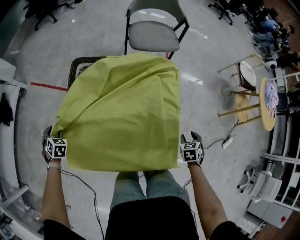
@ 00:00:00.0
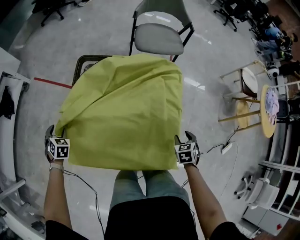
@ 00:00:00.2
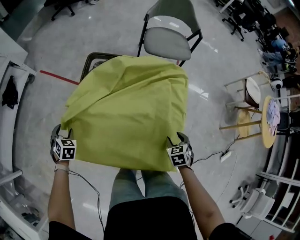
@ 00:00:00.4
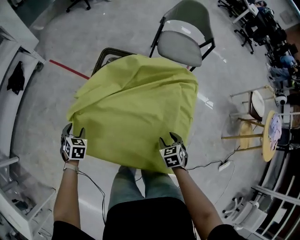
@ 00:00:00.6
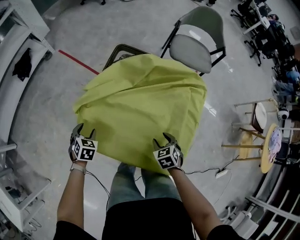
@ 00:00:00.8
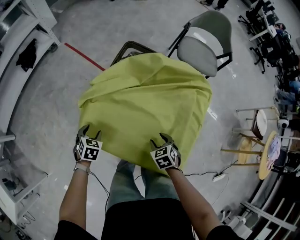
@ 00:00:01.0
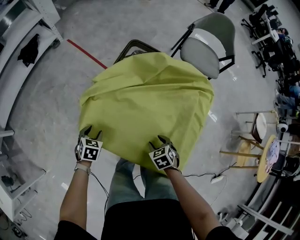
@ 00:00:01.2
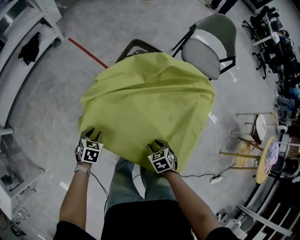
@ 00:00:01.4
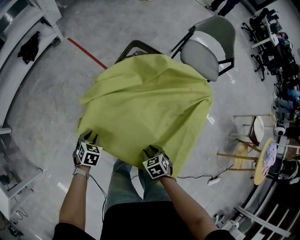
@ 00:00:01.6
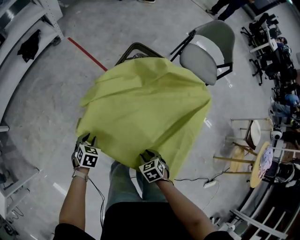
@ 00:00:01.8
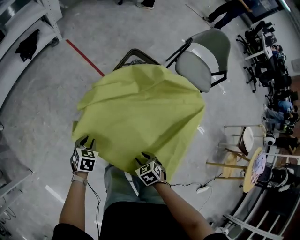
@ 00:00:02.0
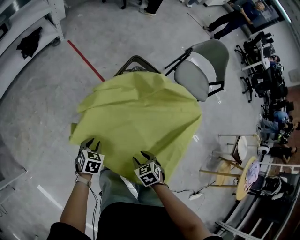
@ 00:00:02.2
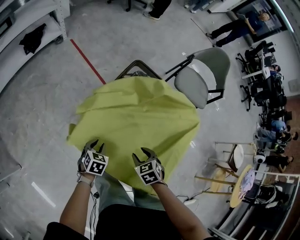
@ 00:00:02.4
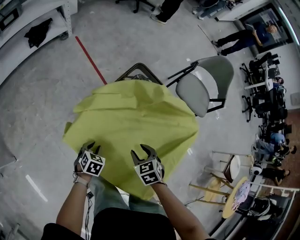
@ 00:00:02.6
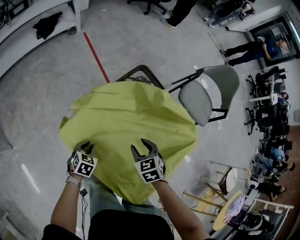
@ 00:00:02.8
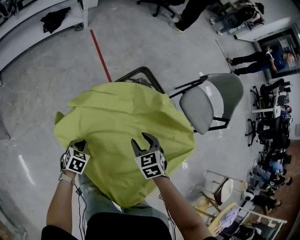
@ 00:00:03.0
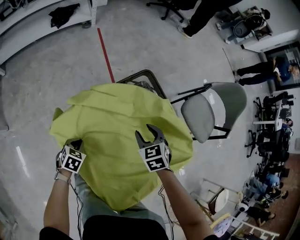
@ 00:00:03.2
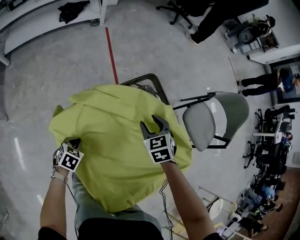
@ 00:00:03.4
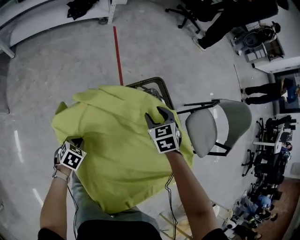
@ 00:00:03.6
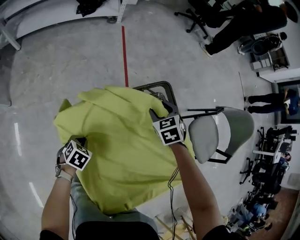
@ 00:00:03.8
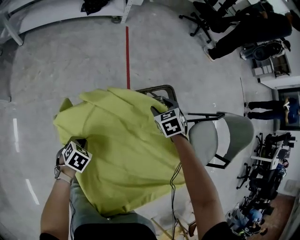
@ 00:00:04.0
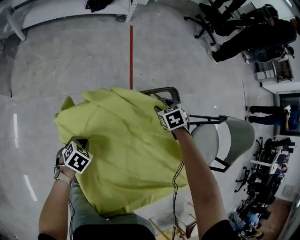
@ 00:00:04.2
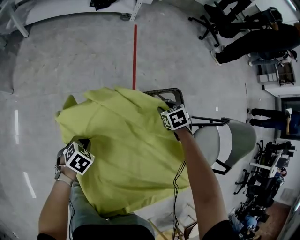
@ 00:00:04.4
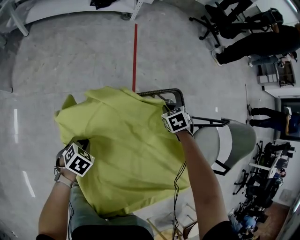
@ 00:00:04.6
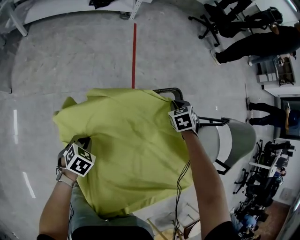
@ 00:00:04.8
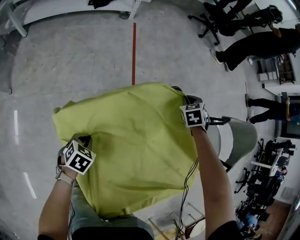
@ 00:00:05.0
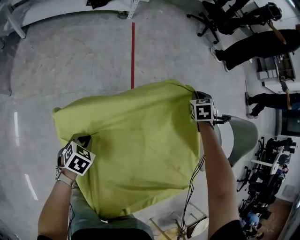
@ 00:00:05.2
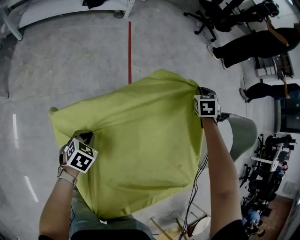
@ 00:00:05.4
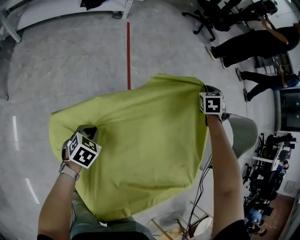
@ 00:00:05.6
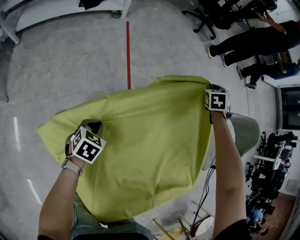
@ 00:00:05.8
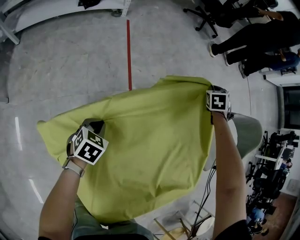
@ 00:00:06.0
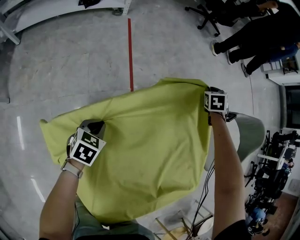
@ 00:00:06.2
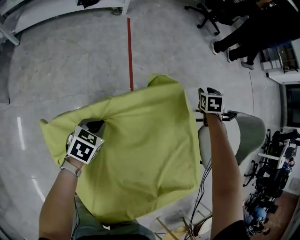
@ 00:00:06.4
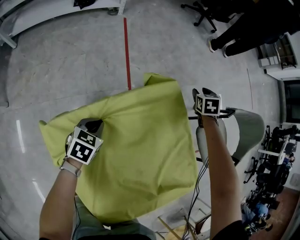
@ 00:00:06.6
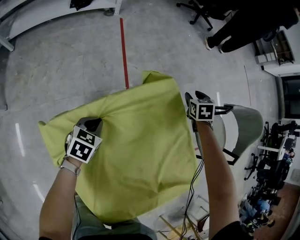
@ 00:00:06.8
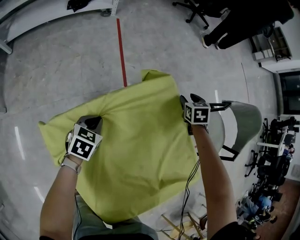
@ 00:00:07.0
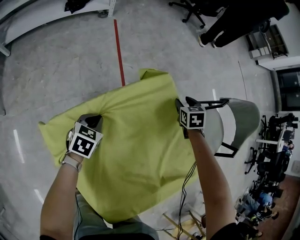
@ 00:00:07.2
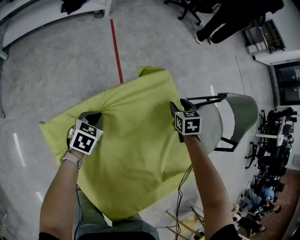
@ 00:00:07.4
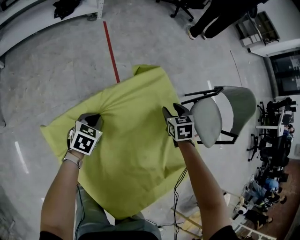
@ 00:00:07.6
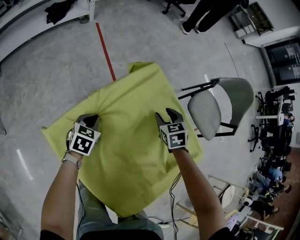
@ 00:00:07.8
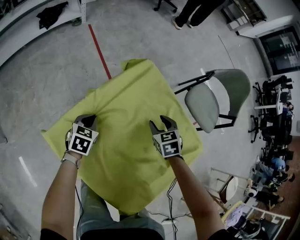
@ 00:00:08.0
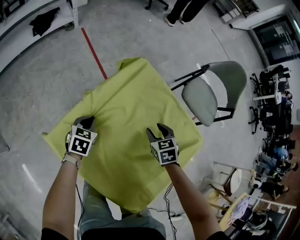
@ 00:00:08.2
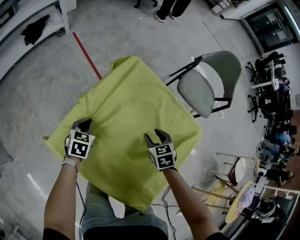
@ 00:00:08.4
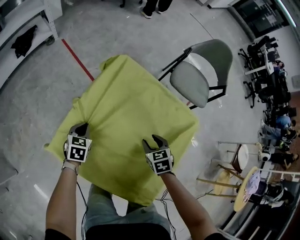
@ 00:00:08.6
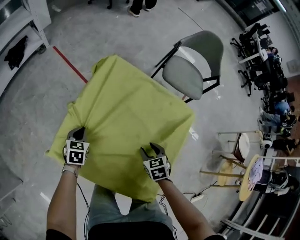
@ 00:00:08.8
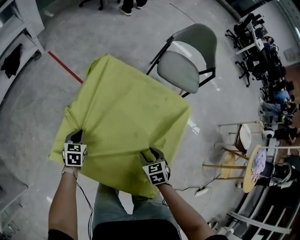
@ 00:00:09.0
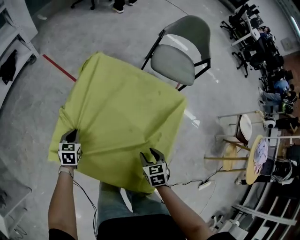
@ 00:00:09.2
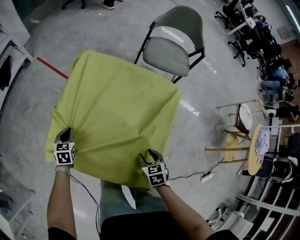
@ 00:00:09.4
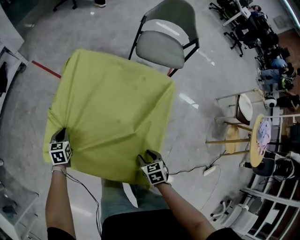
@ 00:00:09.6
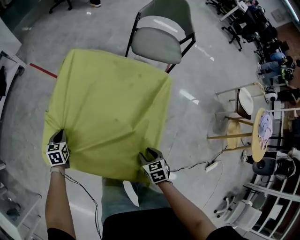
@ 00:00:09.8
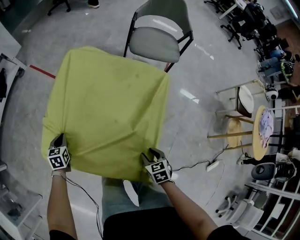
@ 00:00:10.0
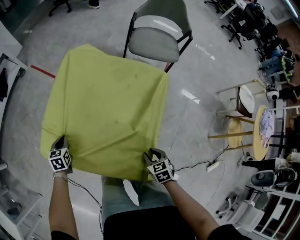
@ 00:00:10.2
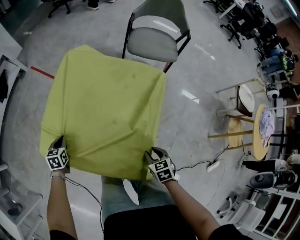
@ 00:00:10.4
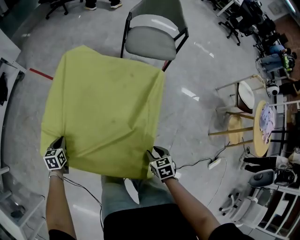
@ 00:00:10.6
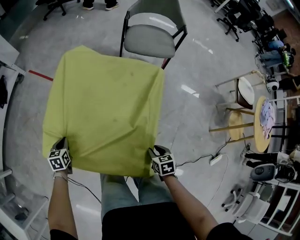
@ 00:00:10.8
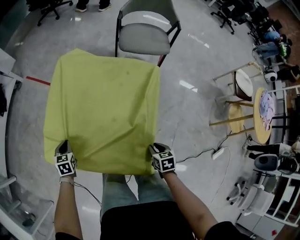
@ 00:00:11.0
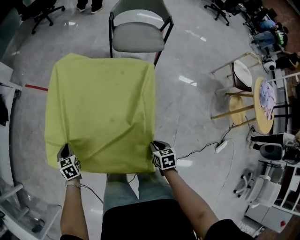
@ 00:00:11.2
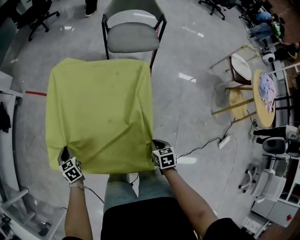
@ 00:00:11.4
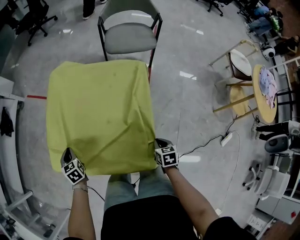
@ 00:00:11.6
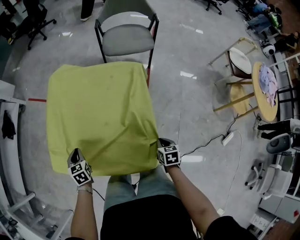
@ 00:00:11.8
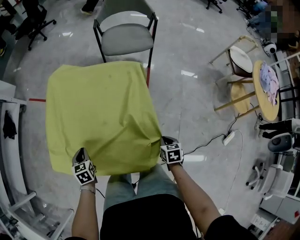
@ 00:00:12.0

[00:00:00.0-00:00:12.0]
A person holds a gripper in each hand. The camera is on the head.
00:00:00.0 to 00:00:01.6: The right gripper ends up about 30 cm from where it was, and turns by approximately 50 degrees; the left gripper ends up approximately 20 cm from where it was, and turns by some 30 degrees.
00:00:01.6 to 00:00:03.0: The left gripper moves to the right, approximately 10 cm, and rotates about 20 degrees, while the right gripper moves forward and upward, approximately 25 cm, and turns by some 30 degrees.
00:00:03.0 to 00:00:04.4: The right gripper travels forward by roughly 25 cm, and changes its angle by some 30 degrees.
00:00:04.4 to 00:00:06.0: The right gripper heads forward, to the right and upward, covering roughly 30 cm, swivels roughly 40 degrees, and closes. The left gripper shifts approximately 15 cm forward.
00:00:06.0 to 00:00:07.6: The right gripper heads backward, covering roughly 25 cm, changes its angle by roughly 20 degrees, and opens its fingers.
00:00:07.6 to 00:00:09.0: The left gripper travels backward by about 5 cm. The right gripper travels backward by about 35 cm, and rotates roughly 30 degrees.
00:00:09.0 to 00:00:10.4: The left gripper goes some 5 cm backward, while the right gripper goes some 20 cm backward and to the right.
00:00:10.4 to 00:00:12.0: The left gripper goes some 15 cm to the right and upward; the right gripper goes roughly 10 cm to the right, and changes its angle by about 30 degrees.

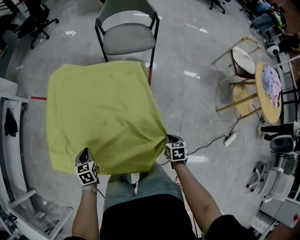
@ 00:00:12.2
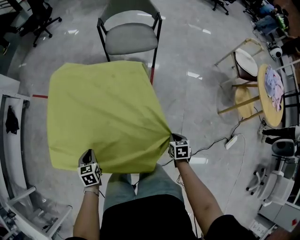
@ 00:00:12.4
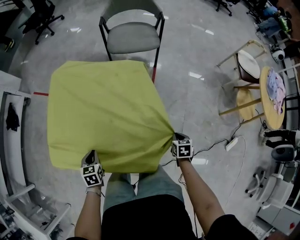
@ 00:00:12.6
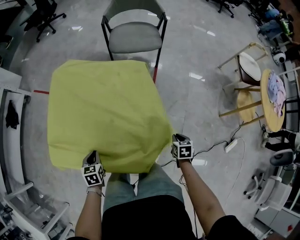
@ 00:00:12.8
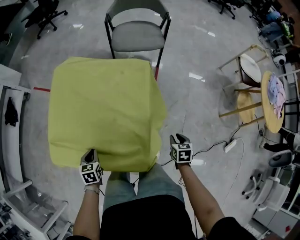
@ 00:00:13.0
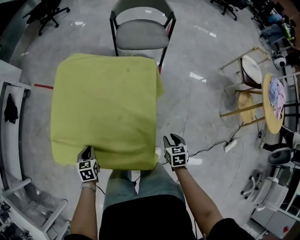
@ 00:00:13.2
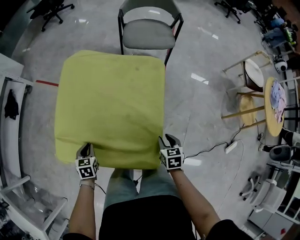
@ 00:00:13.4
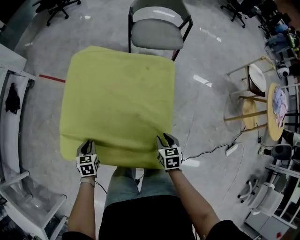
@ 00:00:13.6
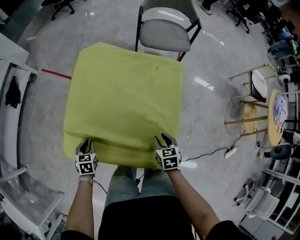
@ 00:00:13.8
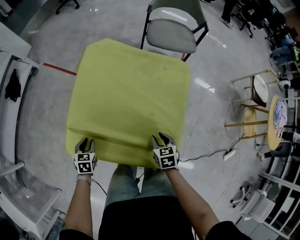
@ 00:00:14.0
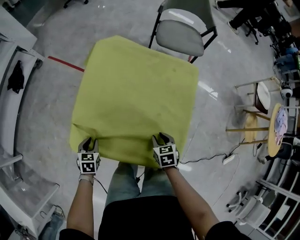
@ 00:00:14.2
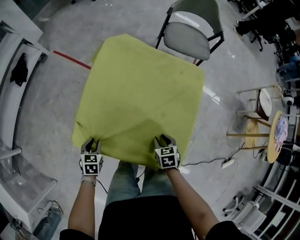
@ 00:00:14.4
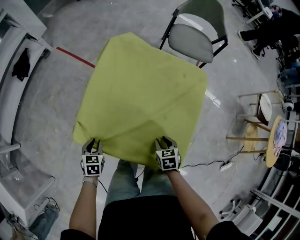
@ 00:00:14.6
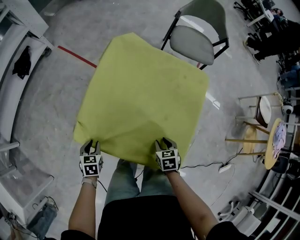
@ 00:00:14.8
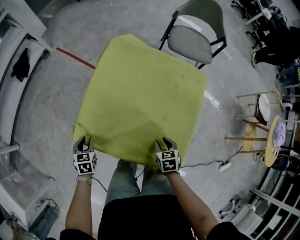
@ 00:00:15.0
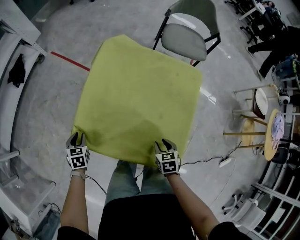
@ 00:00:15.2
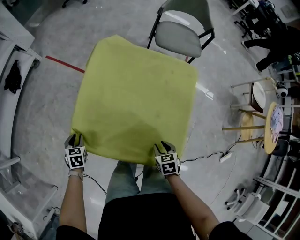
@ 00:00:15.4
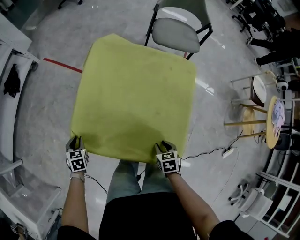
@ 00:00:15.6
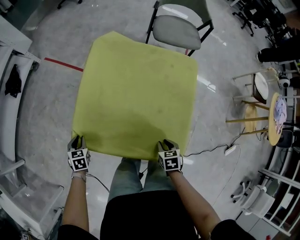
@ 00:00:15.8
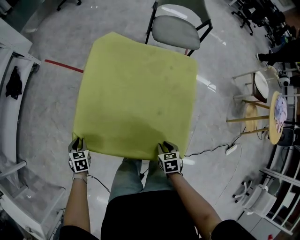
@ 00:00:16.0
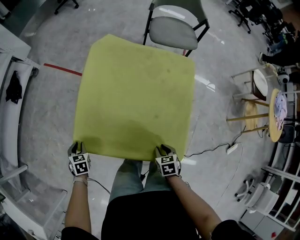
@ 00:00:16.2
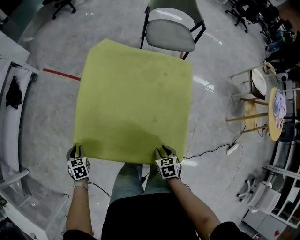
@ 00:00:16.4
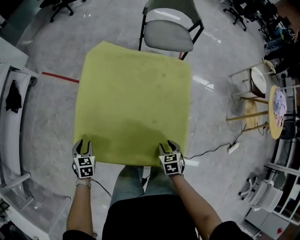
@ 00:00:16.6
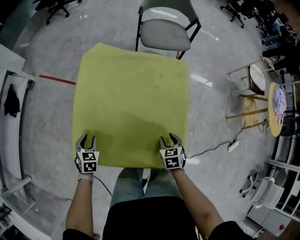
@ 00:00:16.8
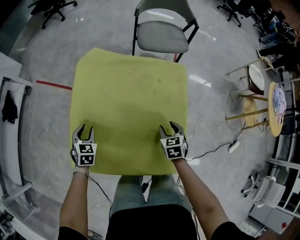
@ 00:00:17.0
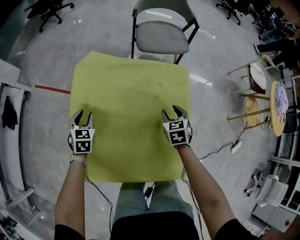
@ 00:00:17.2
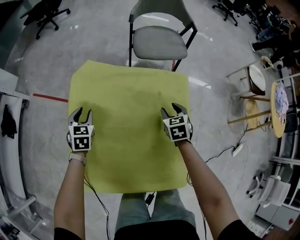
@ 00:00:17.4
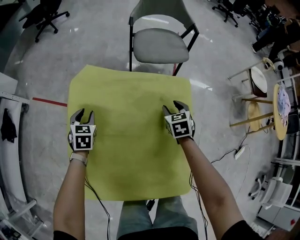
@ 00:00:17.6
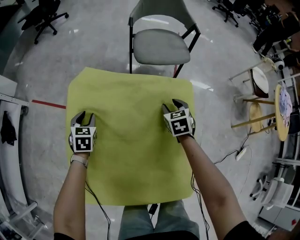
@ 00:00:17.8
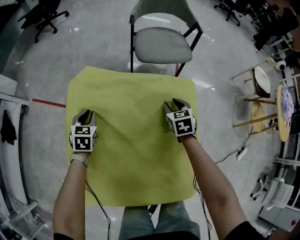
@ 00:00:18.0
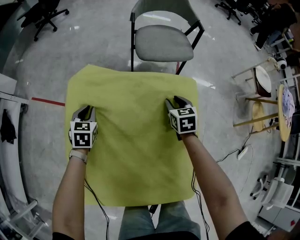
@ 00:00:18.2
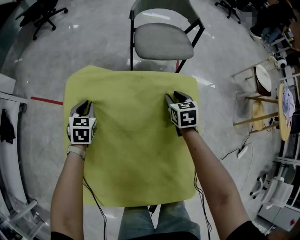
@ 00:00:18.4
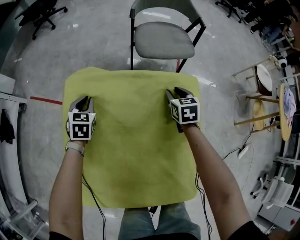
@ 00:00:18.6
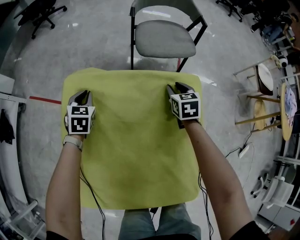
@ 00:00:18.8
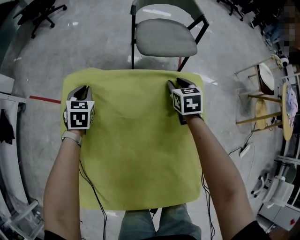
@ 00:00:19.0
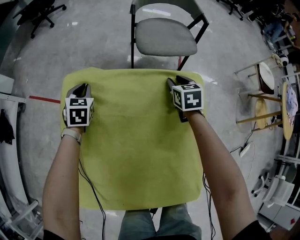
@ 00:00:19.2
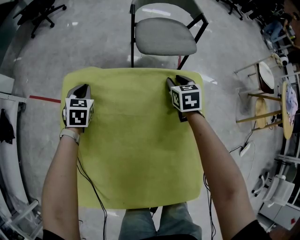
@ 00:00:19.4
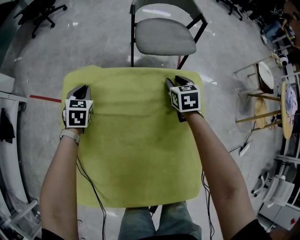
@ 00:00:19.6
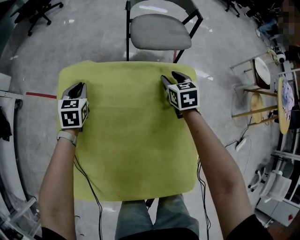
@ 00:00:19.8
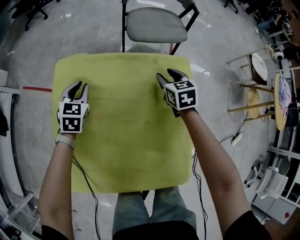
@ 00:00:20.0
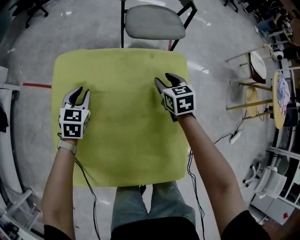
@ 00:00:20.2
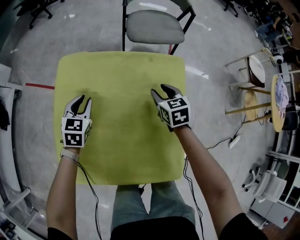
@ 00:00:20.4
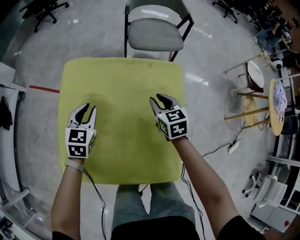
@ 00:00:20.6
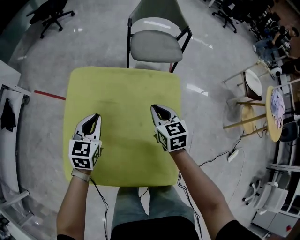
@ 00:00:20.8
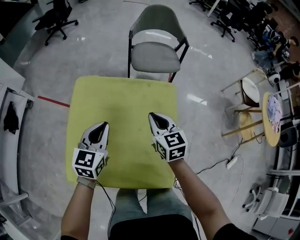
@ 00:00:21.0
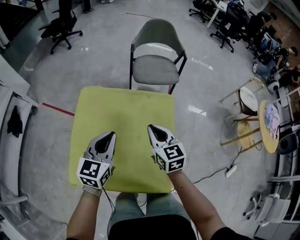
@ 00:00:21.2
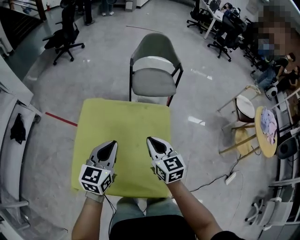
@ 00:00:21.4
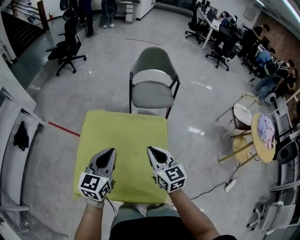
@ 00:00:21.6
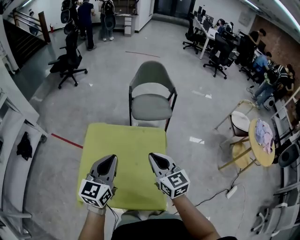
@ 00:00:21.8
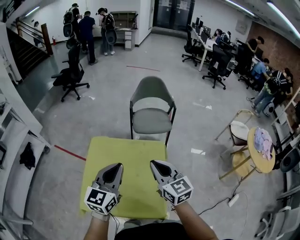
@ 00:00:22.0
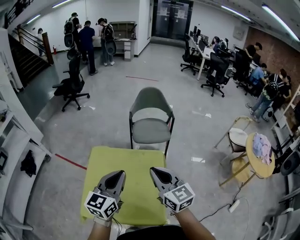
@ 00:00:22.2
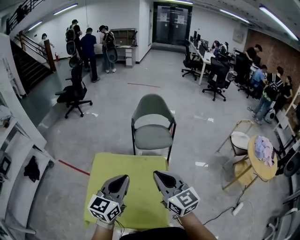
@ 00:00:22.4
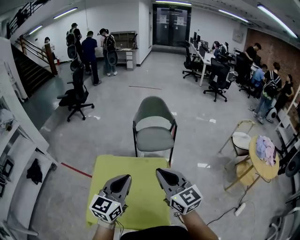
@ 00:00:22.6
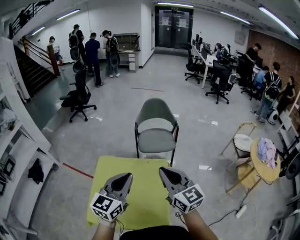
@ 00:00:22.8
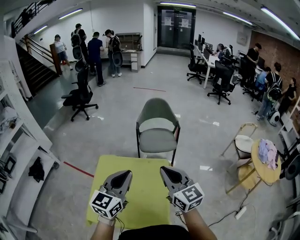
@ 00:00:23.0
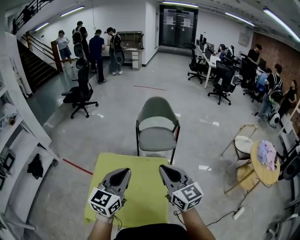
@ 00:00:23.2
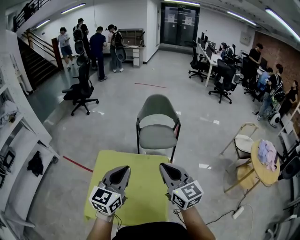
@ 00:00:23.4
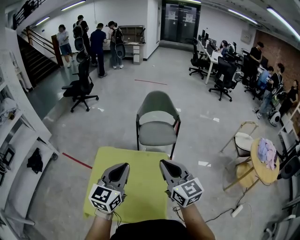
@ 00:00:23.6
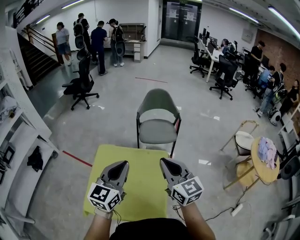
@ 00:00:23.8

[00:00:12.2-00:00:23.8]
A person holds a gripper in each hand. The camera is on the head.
00:00:12.2 to 00:00:13.6: The left gripper is displaced to the left by about 10 cm; the right gripper moves to the left, some 15 cm.
00:00:13.6 to 00:00:15.0: Both grippers travel together to the left, approximately 15 cm.
00:00:15.0 to 00:00:16.6: The right gripper shifts by some 5 cm; the left gripper travels forward by some 5 cm.
00:00:16.6 to 00:00:18.0: The grippers both shift forward by some 35 cm.
00:00:18.0 to 00:00:19.4: Both grippers travel together forward, about 10 cm.
00:00:19.4 to 00:00:21.0: The left gripper travels backward, upward and to the right by about 35 cm, and changes its angle by approximately 30 degrees, while the right gripper is displaced backward and upward by some 25 cm, changes its angle by some 20 degrees, and closes.
00:00:21.0 to 00:00:22.4: Both grippers travel together upward, about 30 cm. The right gripper turns by about 20 degrees.
00:00:22.4 to 00:00:23.8: The grippers stay close to where they were, moving slightly.
